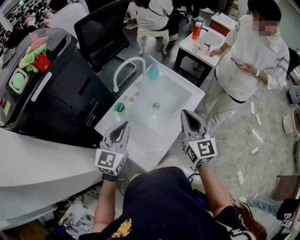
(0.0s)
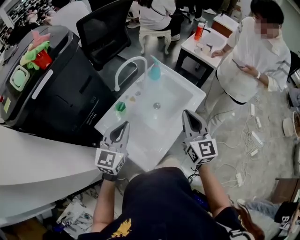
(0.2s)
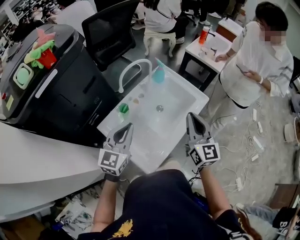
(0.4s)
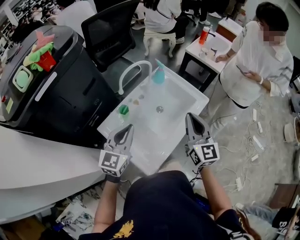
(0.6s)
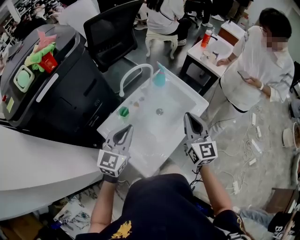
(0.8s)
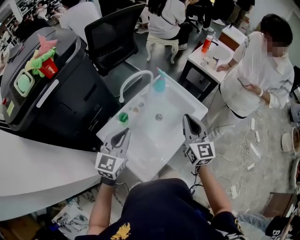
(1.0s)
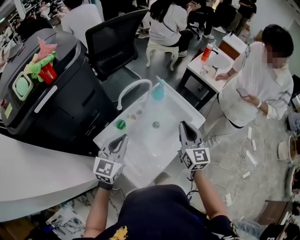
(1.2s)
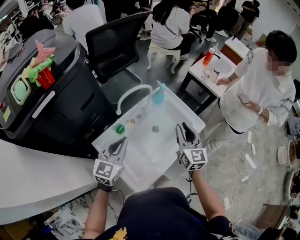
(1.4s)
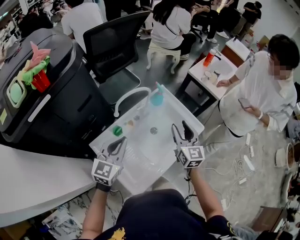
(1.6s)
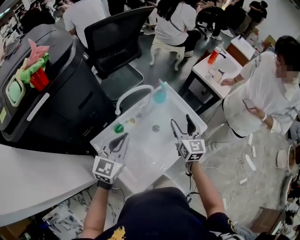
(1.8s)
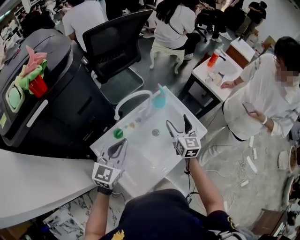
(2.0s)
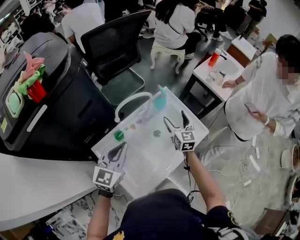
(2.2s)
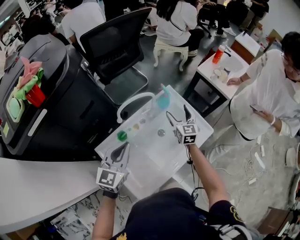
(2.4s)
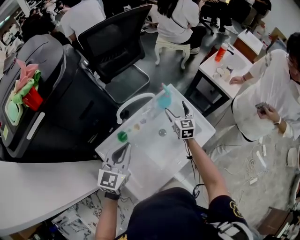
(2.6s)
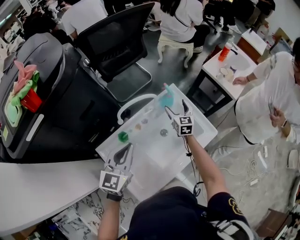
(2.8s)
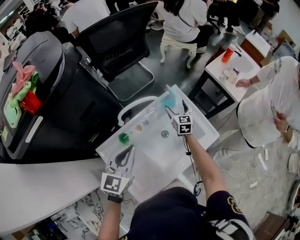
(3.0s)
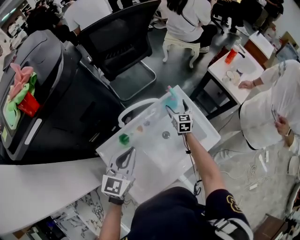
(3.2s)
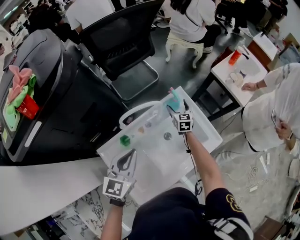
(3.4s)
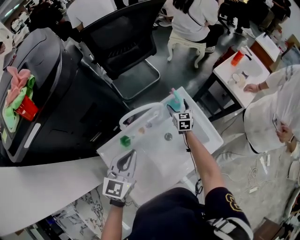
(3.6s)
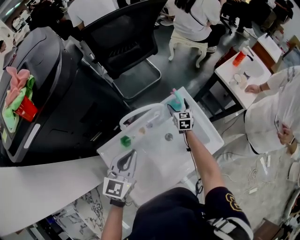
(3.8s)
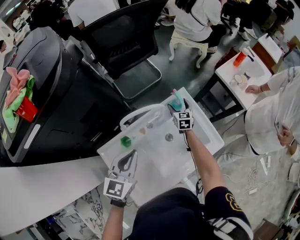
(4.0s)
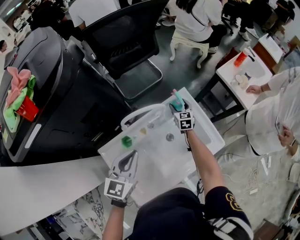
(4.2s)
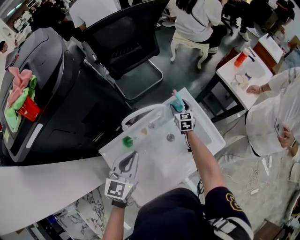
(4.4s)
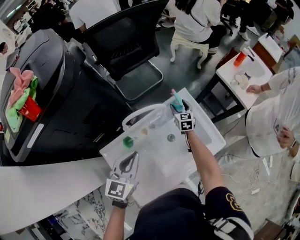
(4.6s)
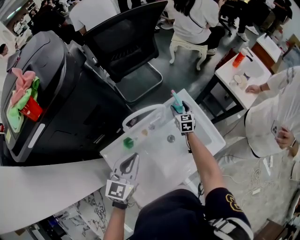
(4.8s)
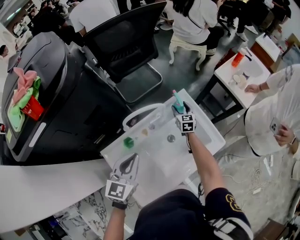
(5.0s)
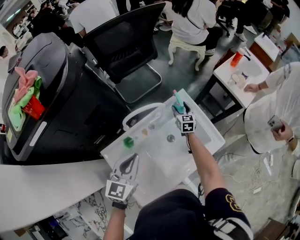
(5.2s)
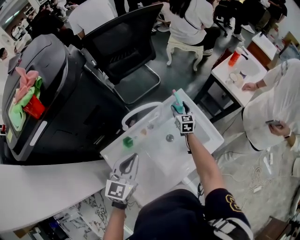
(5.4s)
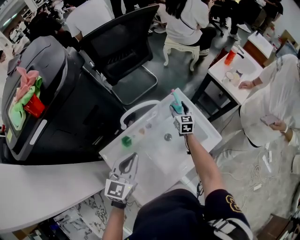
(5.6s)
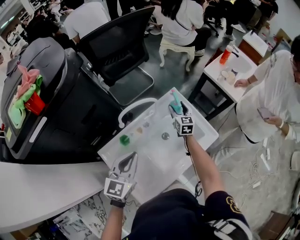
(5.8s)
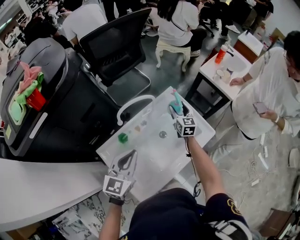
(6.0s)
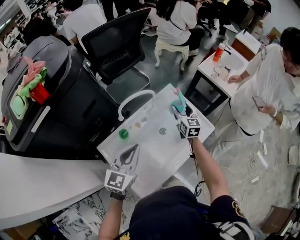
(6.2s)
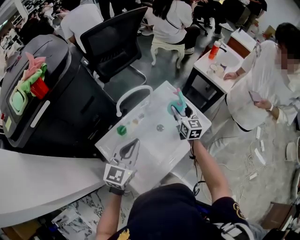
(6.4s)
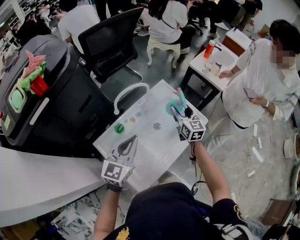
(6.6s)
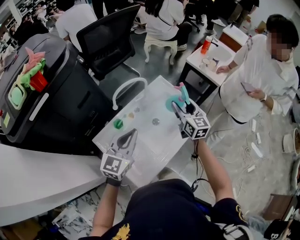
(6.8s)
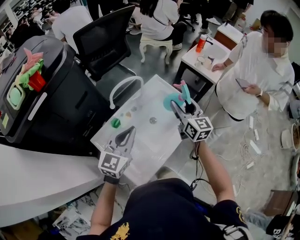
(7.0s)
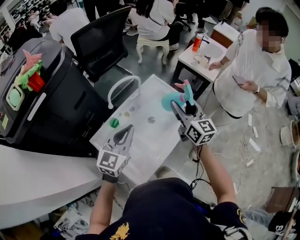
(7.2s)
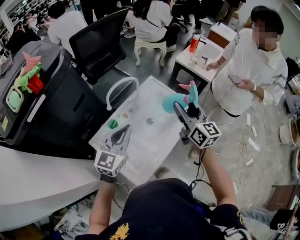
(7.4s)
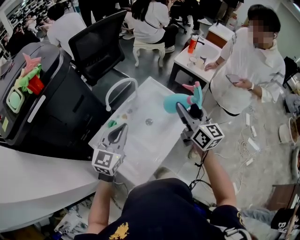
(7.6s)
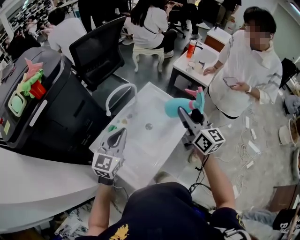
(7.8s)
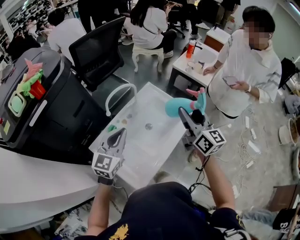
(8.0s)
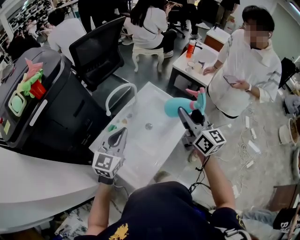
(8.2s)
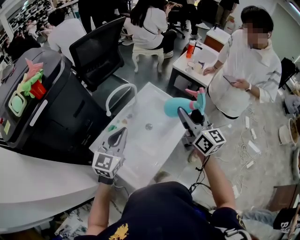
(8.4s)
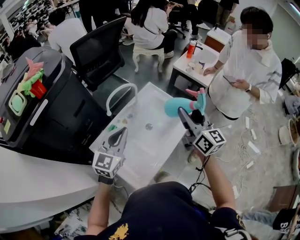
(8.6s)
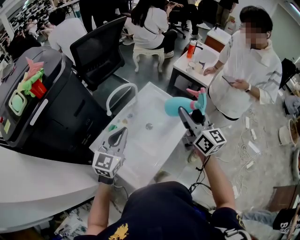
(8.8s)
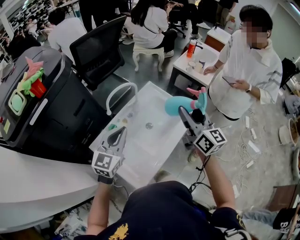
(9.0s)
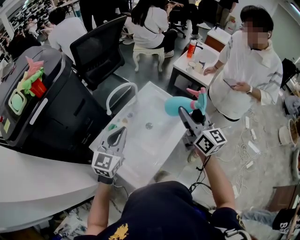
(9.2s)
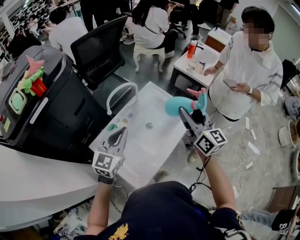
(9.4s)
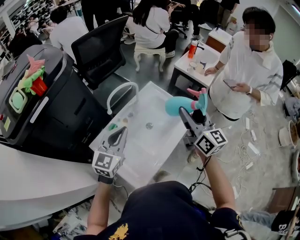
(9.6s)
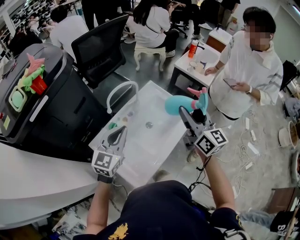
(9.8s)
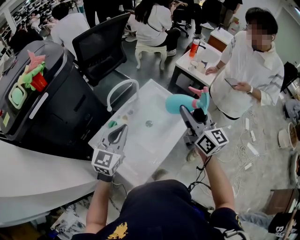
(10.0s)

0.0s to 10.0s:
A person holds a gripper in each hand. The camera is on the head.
0.0s to 1.4s: The right gripper goes approximately 15 cm forward, while the left gripper shifts about 10 cm forward.
1.4s to 2.8s: The left gripper is displaced forward by about 5 cm. The right gripper moves forward and downward, roughly 30 cm, and opens its fingers.
2.8s to 4.2s: The right gripper is displaced downward and forward by about 10 cm.
4.2s to 5.8s: The right gripper heads upward and backward, covering approximately 10 cm. The left gripper heads backward, covering about 5 cm.
5.8s to 7.2s: The left gripper changes place by approximately 5 cm. The right gripper is displaced backward and upward by some 35 cm.
7.2s to 8.6s: The right gripper goes approximately 5 cm upward.
8.6s to 10.0s: The grippers stay close to where they were, moving slightly.

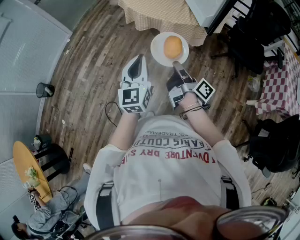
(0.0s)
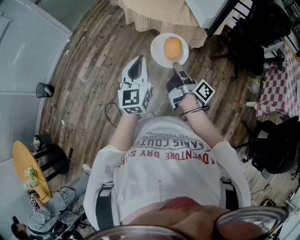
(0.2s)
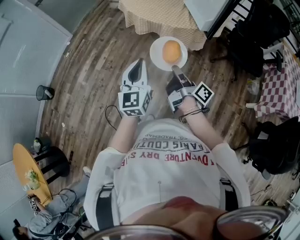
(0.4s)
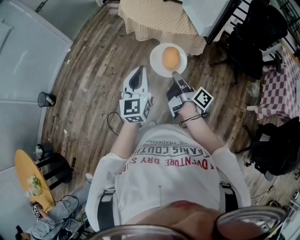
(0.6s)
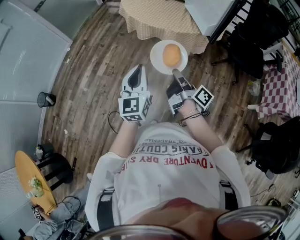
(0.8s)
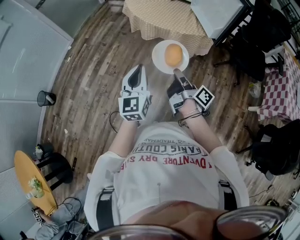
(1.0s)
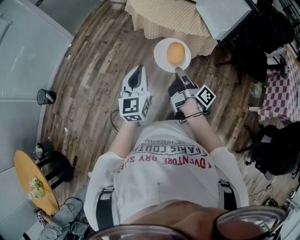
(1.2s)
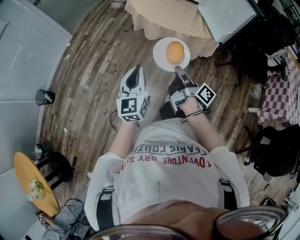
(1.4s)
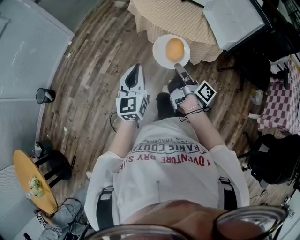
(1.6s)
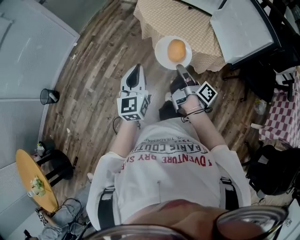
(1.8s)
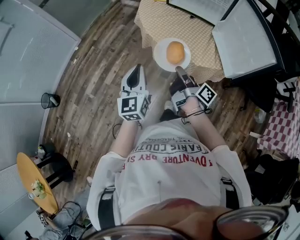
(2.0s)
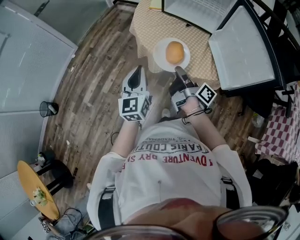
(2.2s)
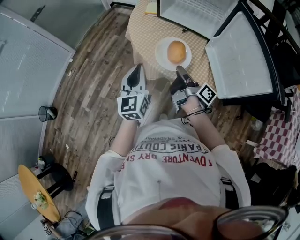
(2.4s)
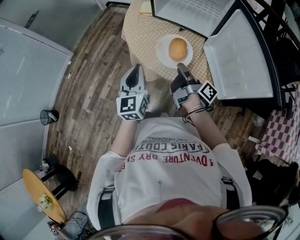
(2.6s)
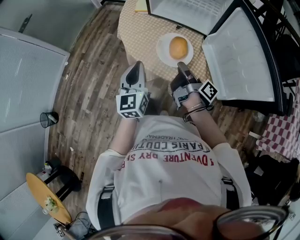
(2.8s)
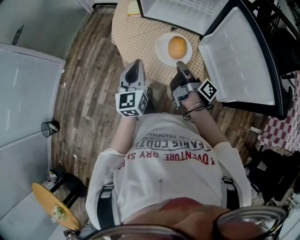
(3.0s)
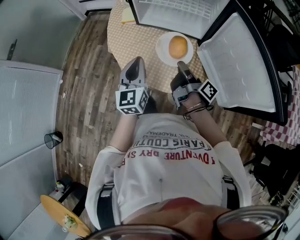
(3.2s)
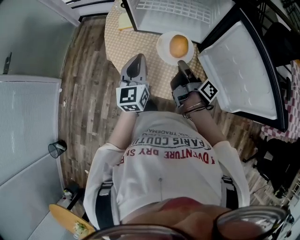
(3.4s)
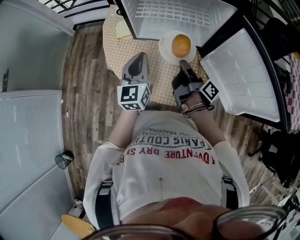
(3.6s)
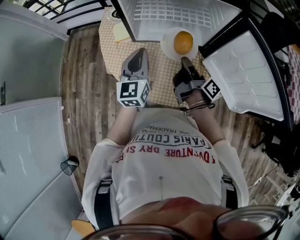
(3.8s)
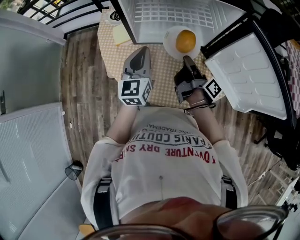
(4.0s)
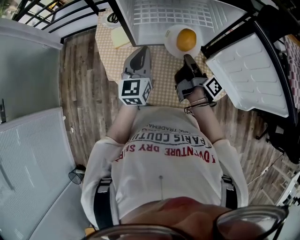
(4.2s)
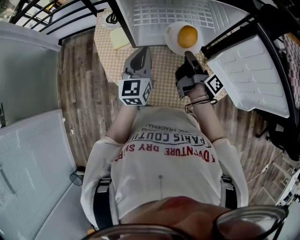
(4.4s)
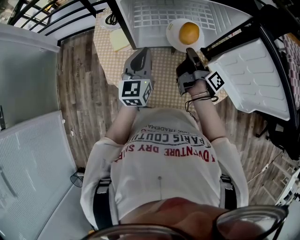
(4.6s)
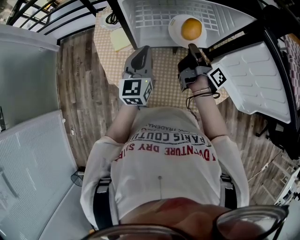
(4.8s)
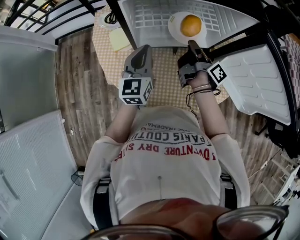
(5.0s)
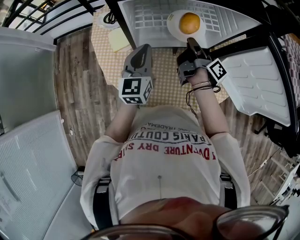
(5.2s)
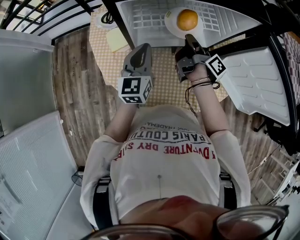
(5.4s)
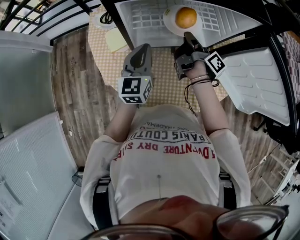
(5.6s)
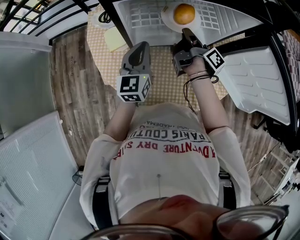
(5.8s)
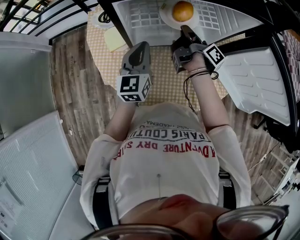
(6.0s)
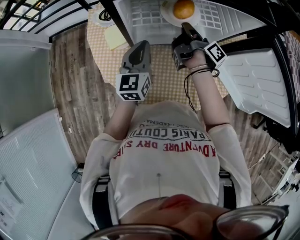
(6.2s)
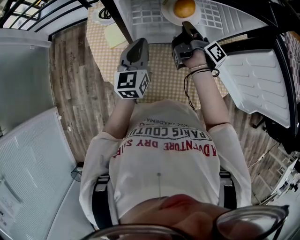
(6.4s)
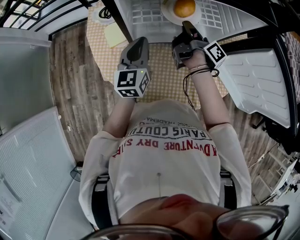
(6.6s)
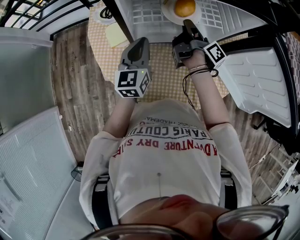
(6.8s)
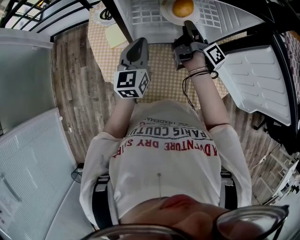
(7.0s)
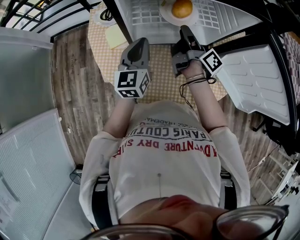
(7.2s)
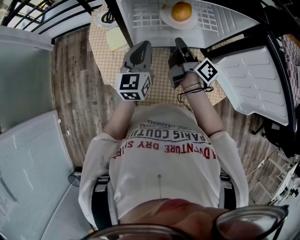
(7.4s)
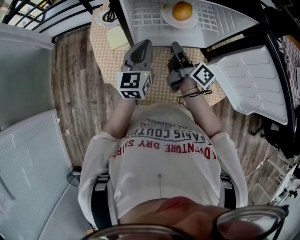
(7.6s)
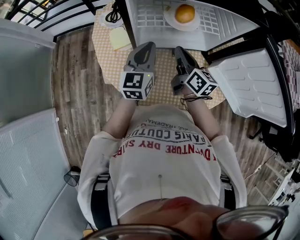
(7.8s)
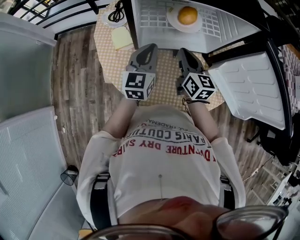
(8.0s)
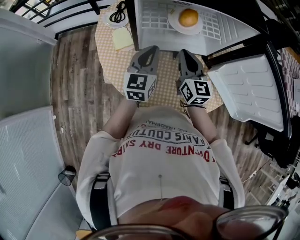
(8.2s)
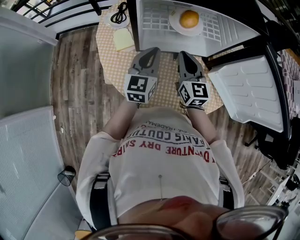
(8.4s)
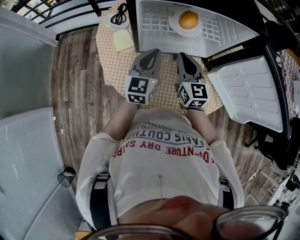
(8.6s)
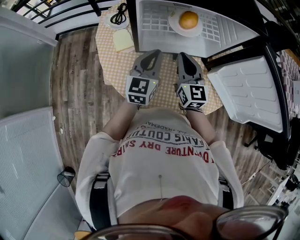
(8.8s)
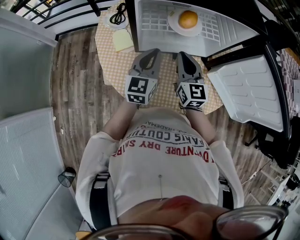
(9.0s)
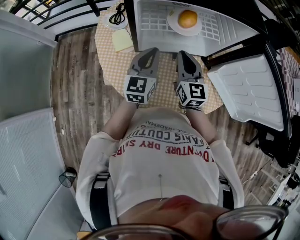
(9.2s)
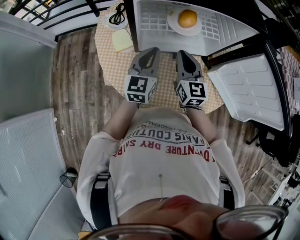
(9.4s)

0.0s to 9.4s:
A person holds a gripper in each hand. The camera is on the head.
0.0s to 1.6s: The left gripper ends up approximately 15 cm from where it was.
1.6s to 3.2s: The left gripper shifts by roughly 50 cm.
3.2s to 4.8s: The left gripper changes place by approximately 25 cm, and changes its angle by some 30 degrees.

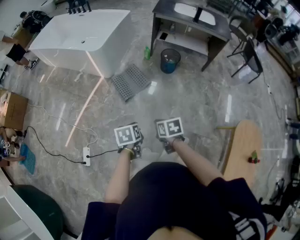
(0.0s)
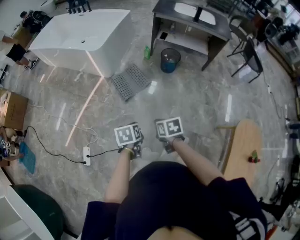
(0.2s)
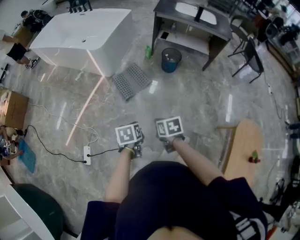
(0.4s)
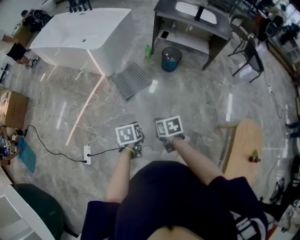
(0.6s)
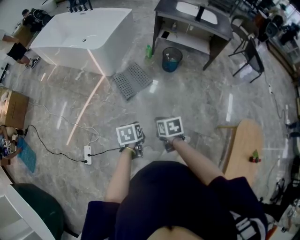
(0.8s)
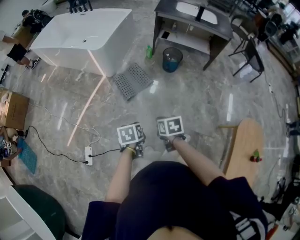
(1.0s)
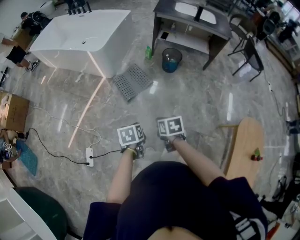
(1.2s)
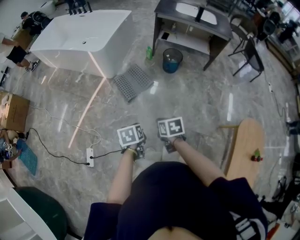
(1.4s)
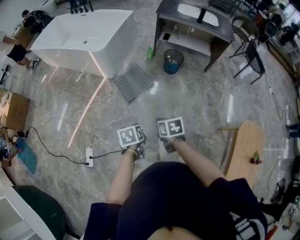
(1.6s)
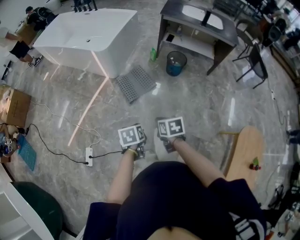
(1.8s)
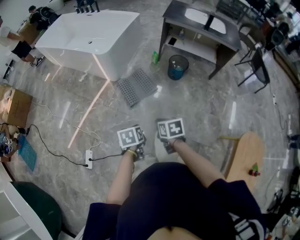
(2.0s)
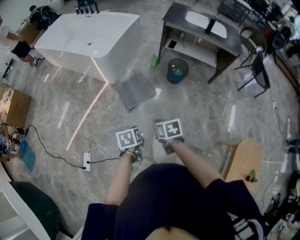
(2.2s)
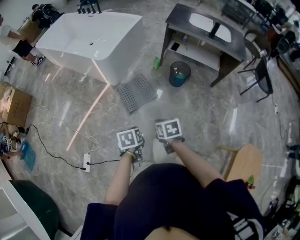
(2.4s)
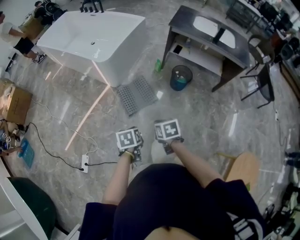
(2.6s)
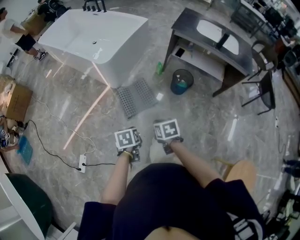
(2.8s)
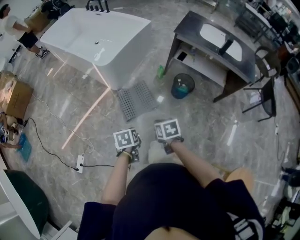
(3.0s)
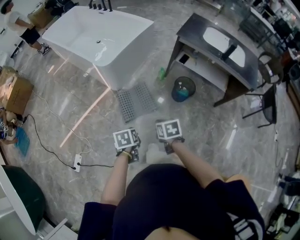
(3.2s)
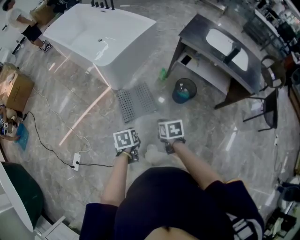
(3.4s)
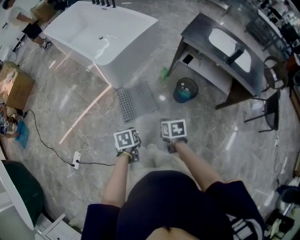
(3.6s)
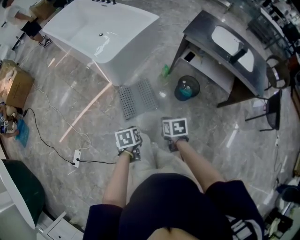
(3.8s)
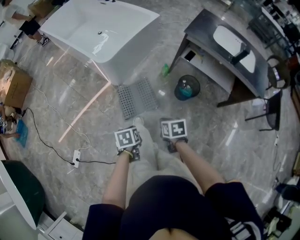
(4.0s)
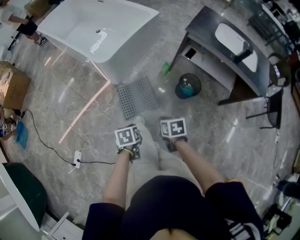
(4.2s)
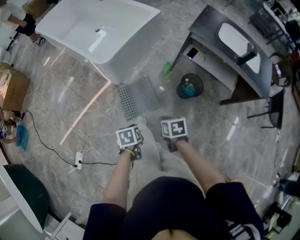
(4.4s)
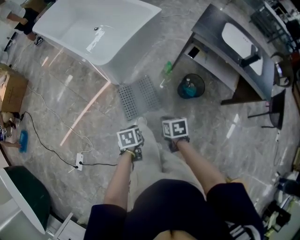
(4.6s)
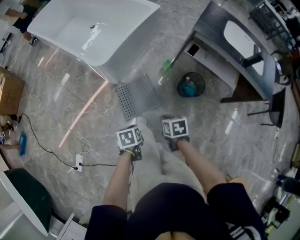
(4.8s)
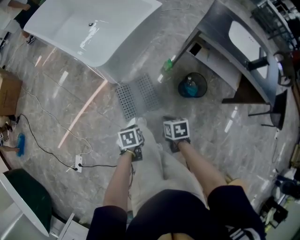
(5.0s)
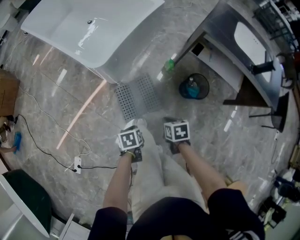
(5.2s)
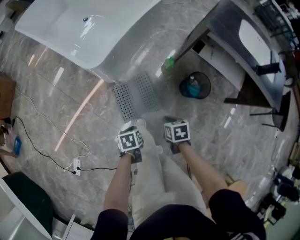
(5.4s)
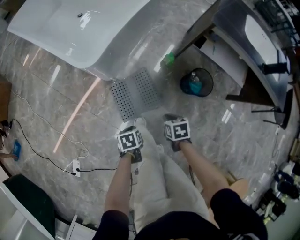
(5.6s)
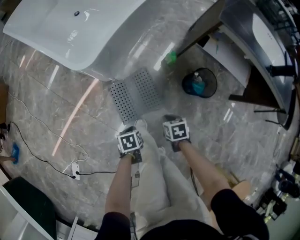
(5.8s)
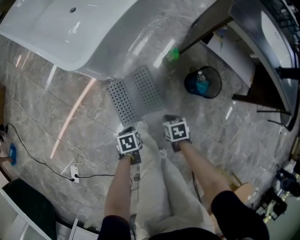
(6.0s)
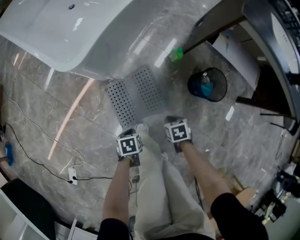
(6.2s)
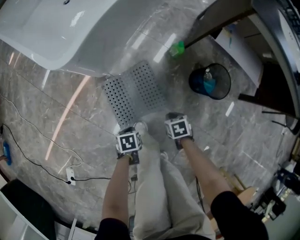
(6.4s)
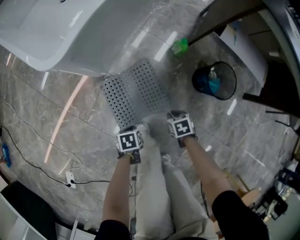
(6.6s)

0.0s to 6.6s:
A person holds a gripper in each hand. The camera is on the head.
1.6s to 3.2s: The right gripper moves roughly 30 cm.
3.2s to 5.0s: The right gripper shifts by some 20 cm.
5.0s to 6.6s: The right gripper heads downward, covering roughly 40 cm.
